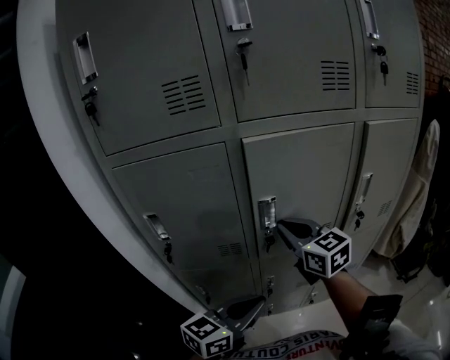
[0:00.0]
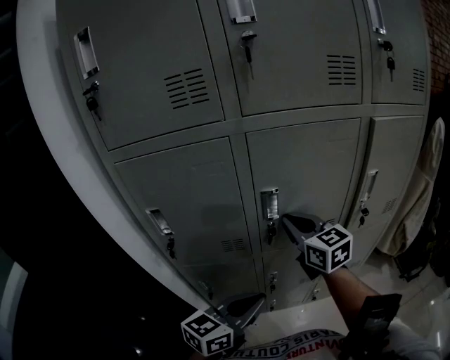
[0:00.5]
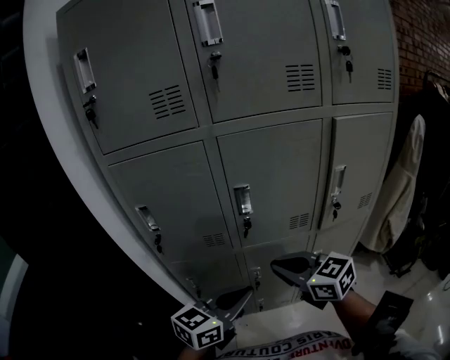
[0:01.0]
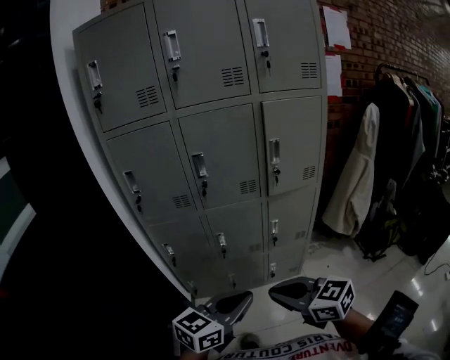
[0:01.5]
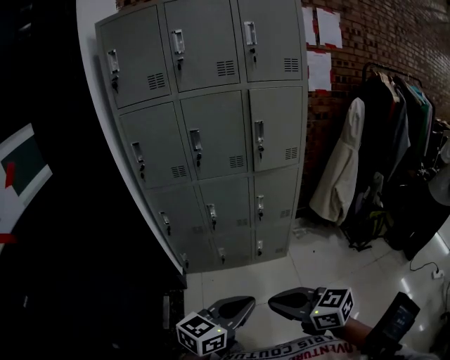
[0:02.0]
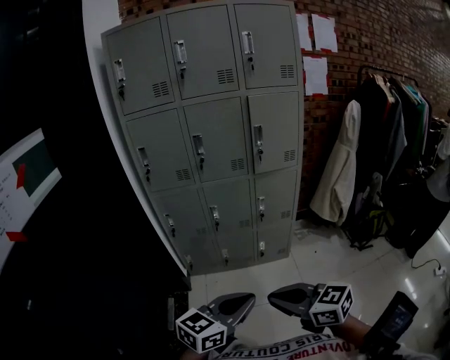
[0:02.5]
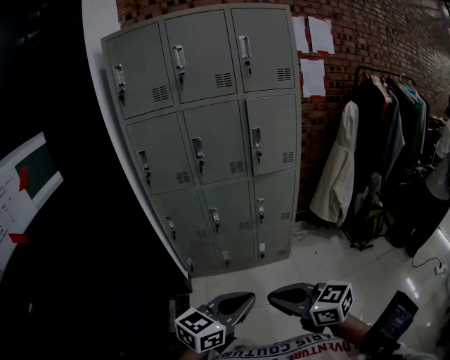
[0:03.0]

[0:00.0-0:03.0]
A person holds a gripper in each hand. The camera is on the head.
0:00.0 to 0:01.5: The right gripper goes approximately 40 cm backward, and swivels approximately 20 degrees. The left gripper goes about 30 cm backward and to the right.
0:01.5 to 0:03.0: The two grippers go roughly 25 cm backward.

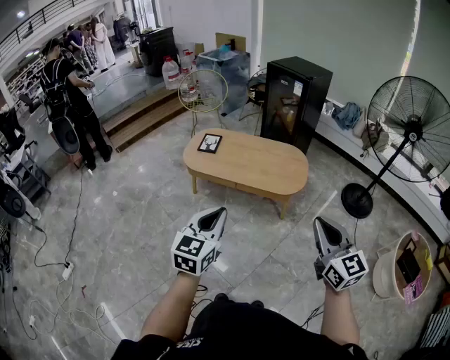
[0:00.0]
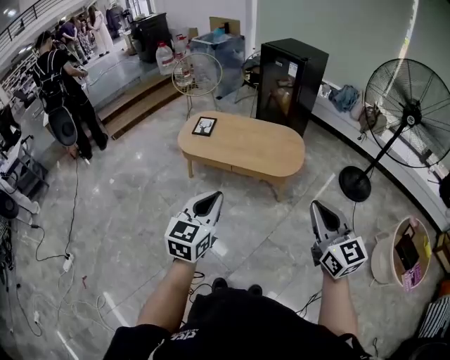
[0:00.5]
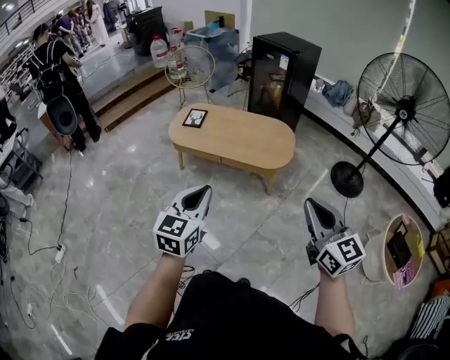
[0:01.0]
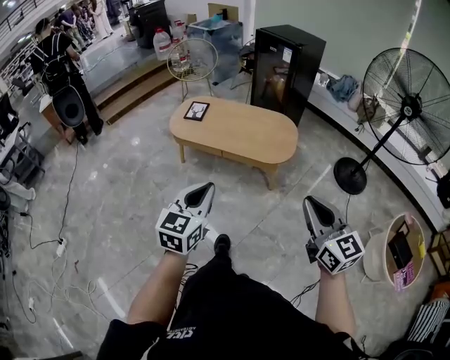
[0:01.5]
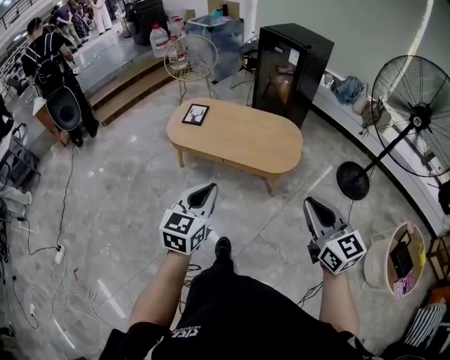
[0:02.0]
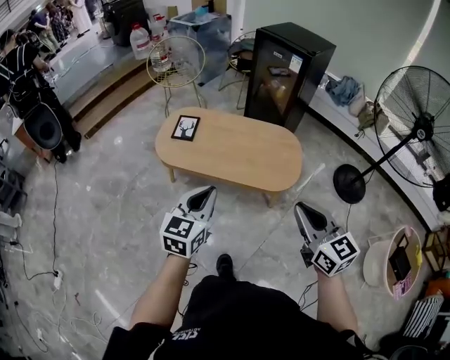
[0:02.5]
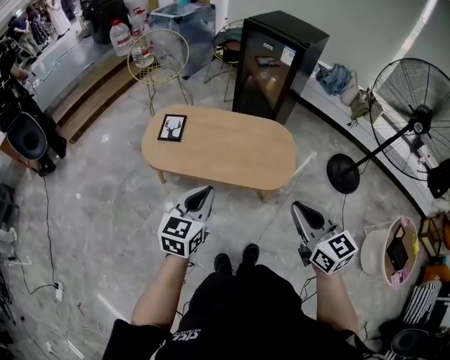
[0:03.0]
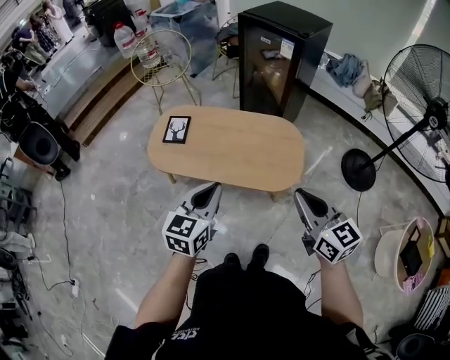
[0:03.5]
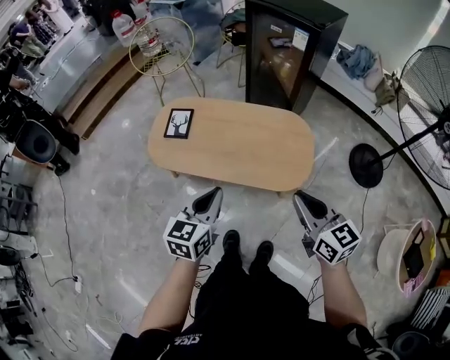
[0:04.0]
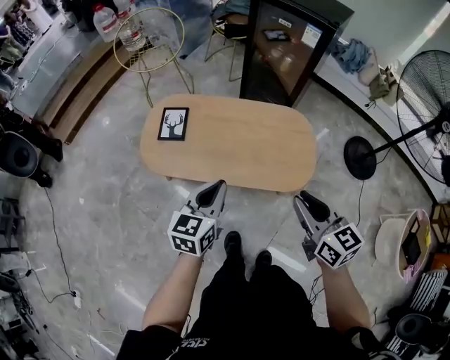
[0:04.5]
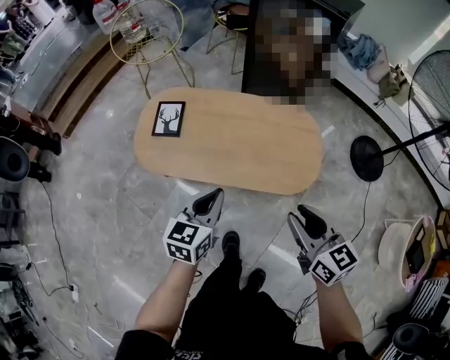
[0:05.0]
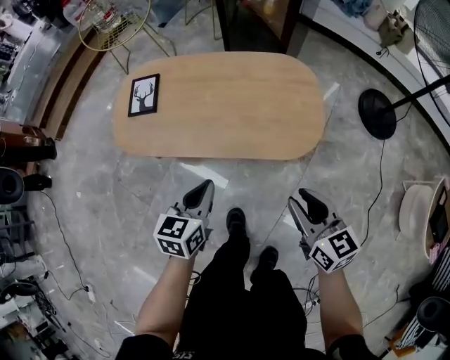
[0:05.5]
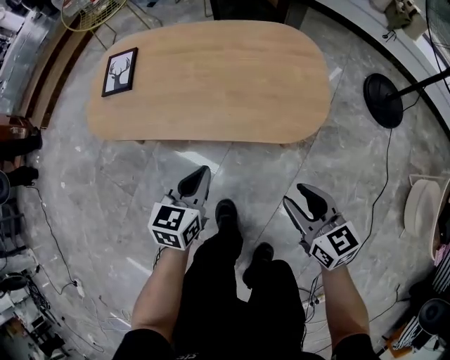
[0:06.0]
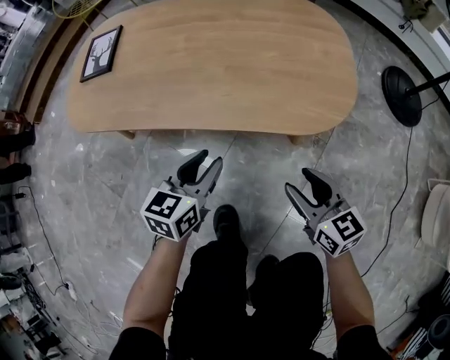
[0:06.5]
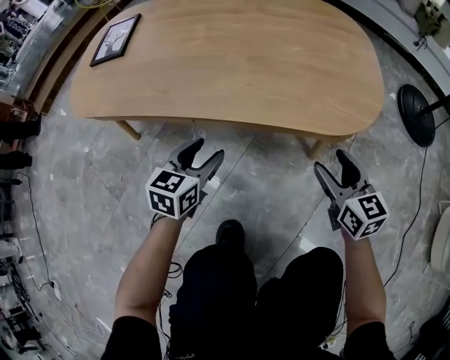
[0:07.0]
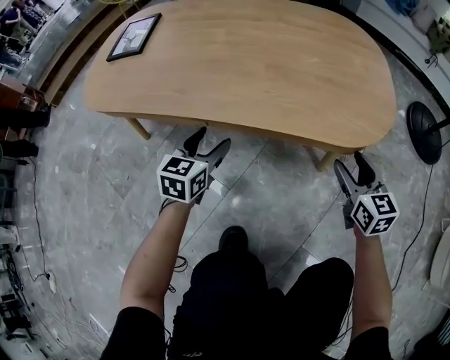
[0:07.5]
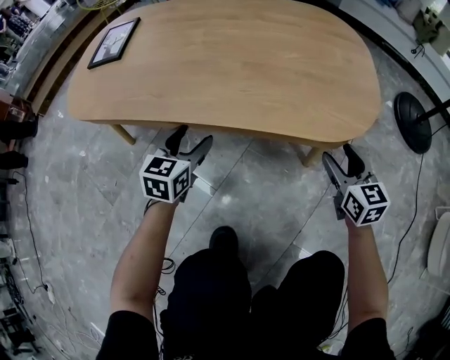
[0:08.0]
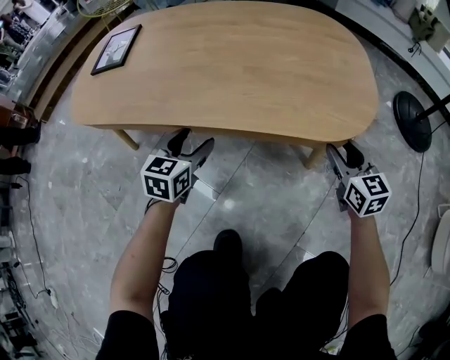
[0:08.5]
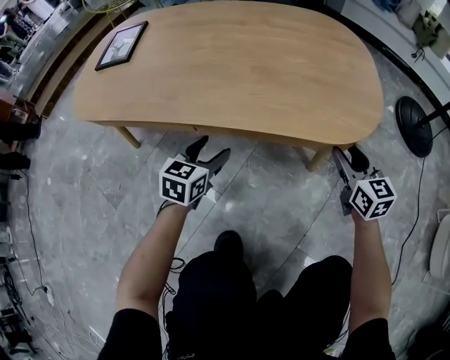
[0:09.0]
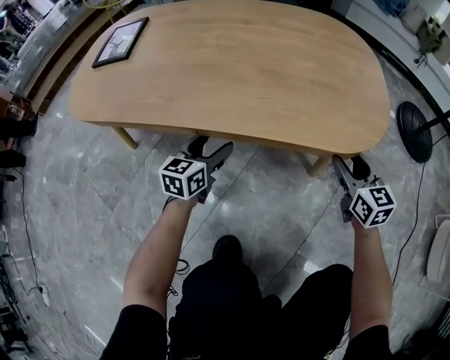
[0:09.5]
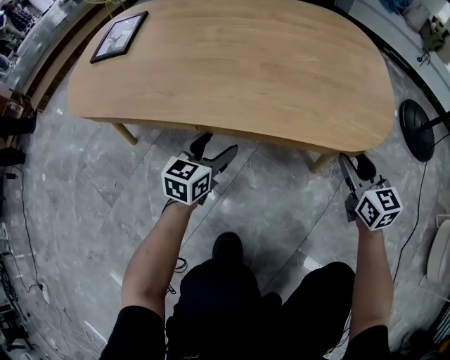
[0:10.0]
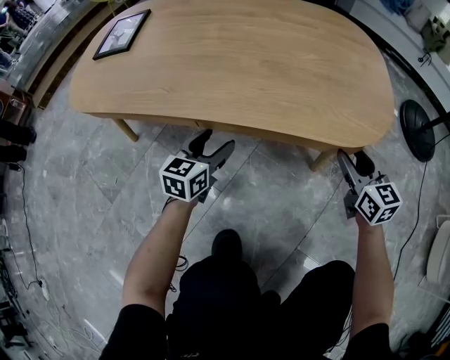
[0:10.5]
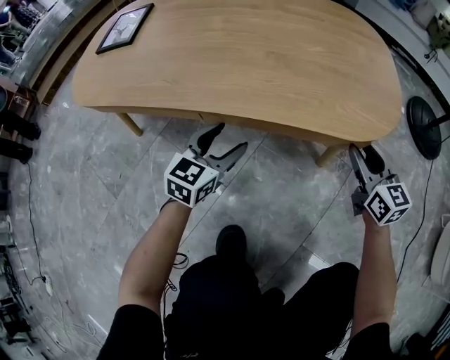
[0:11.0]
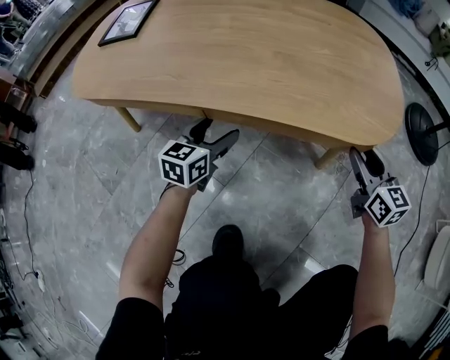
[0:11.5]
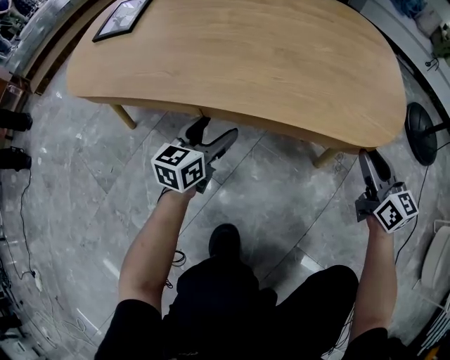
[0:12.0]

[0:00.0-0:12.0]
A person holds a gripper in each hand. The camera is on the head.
0:00.0 to 0:02.0: The left gripper shifts about 10 cm forward and downward; the right gripper travels forward by some 10 cm.
0:02.0 to 0:04.0: The two grippers go roughly 30 cm forward.
0:04.0 to 0:06.0: The grippers both shift downward by about 35 cm. The right gripper opens.
0:06.0 to 0:08.0: Both grippers move downward and forward, some 30 cm. The right gripper opens its fingers. The left gripper opens.
0:08.0 to 0:10.0: The left gripper travels downward by some 5 cm.
0:10.0 to 0:12.0: The grippers stay close to where they were, moving slightly.

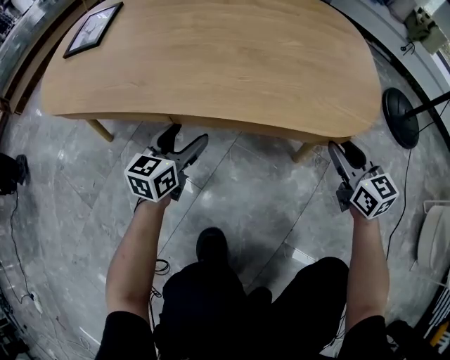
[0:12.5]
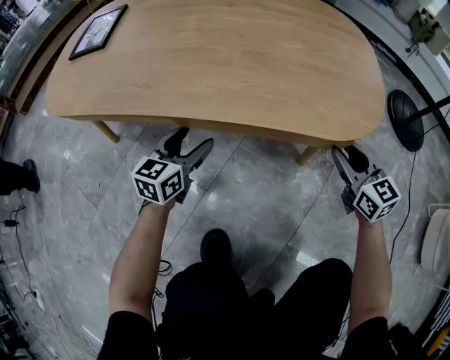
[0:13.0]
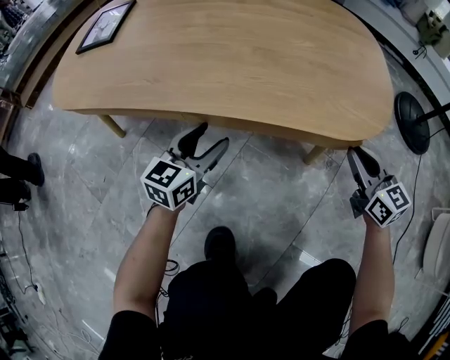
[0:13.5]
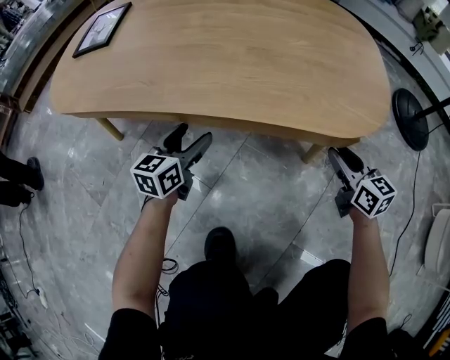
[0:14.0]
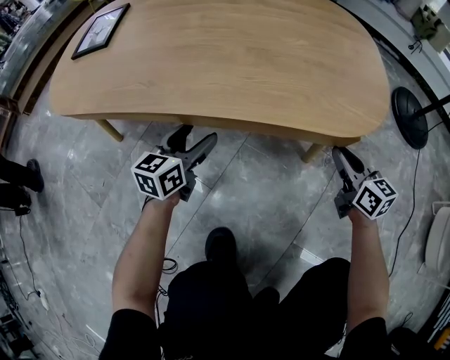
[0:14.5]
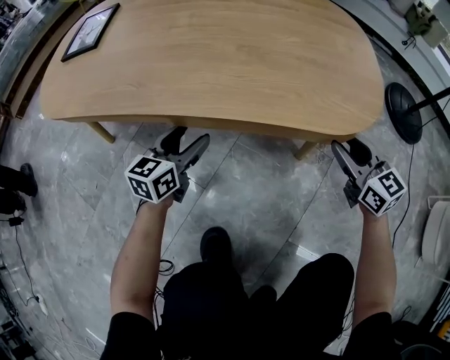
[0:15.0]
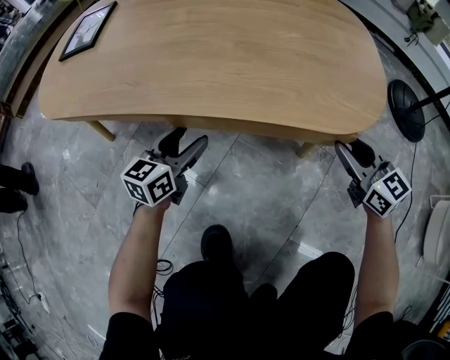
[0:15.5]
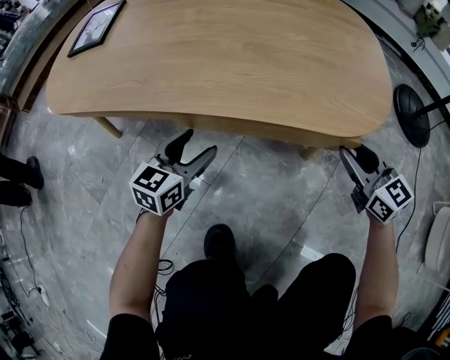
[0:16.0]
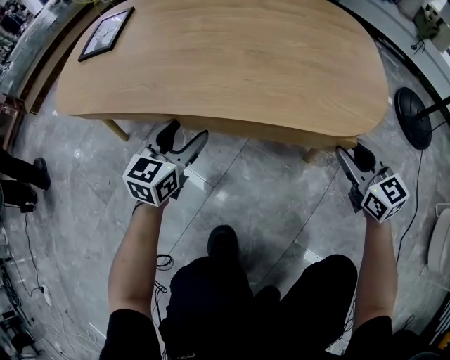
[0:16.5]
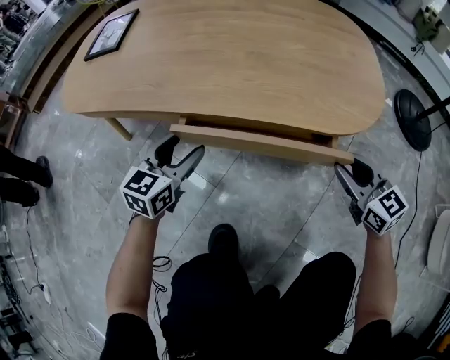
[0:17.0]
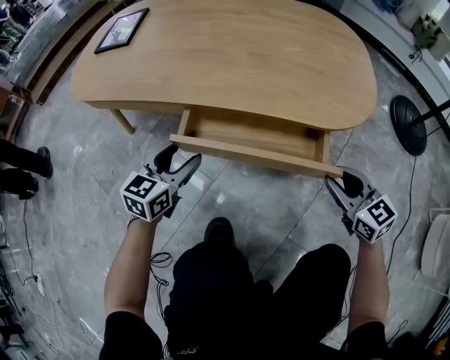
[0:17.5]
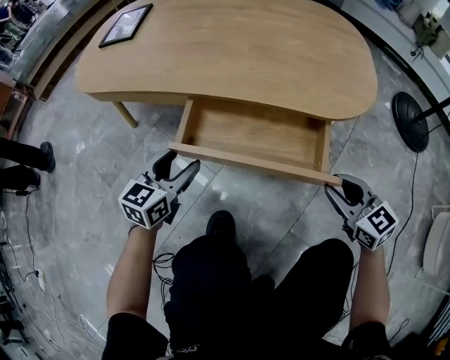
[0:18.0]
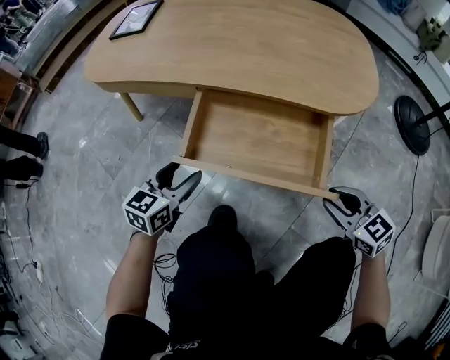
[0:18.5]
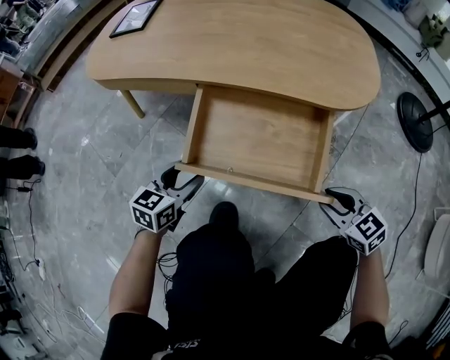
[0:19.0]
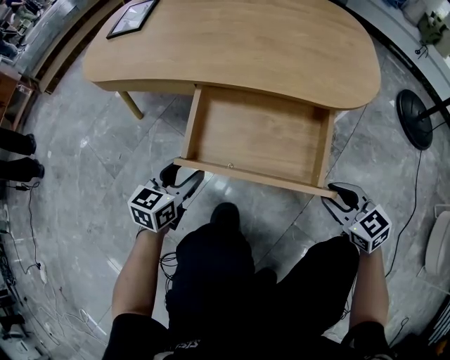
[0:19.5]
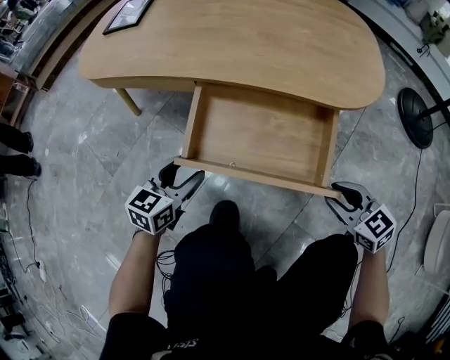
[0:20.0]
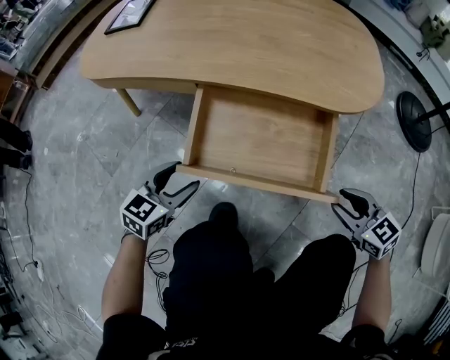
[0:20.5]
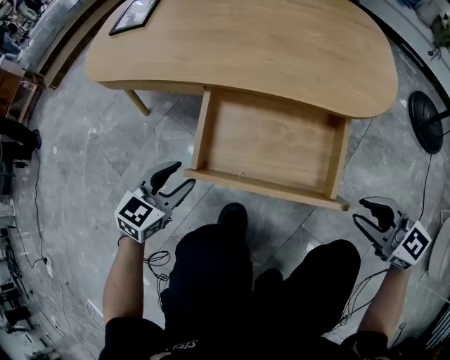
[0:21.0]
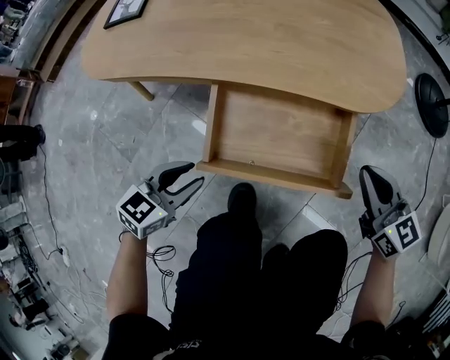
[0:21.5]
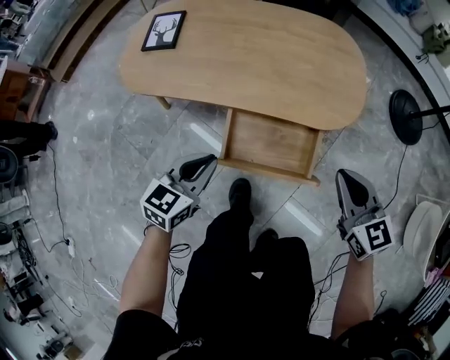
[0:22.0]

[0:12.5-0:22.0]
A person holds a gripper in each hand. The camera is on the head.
0:12.5 to 0:14.5: The grippers make only small movements.
0:14.5 to 0:16.5: The grippers both shift upward by some 5 cm. The right gripper changes its angle by some 20 degrees.
0:16.5 to 0:18.0: Both grippers travel together backward, approximately 15 cm.
0:18.0 to 0:20.0: The right gripper ends up about 5 cm from where it was. Meanwhile the left gripper shifts about 5 cm backward.
0:20.0 to 0:22.0: The two grippers go some 30 cm upward. The right gripper turns by approximately 20 degrees, and closes its fingers. The left gripper closes its fingers.

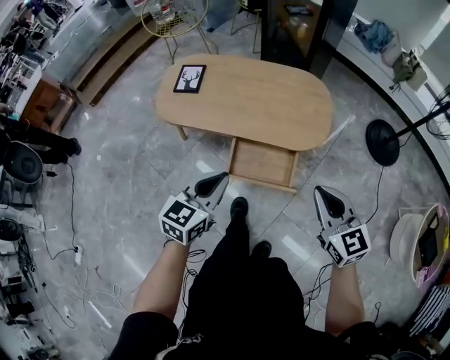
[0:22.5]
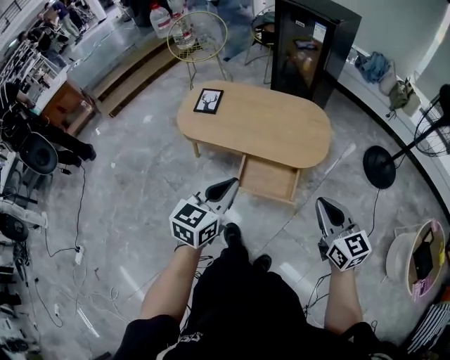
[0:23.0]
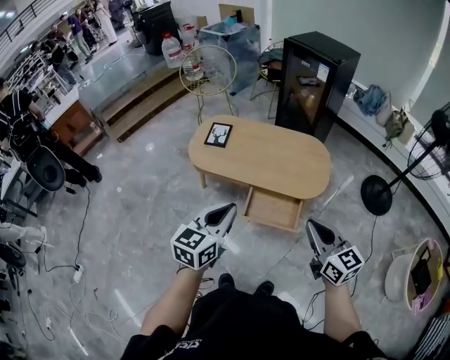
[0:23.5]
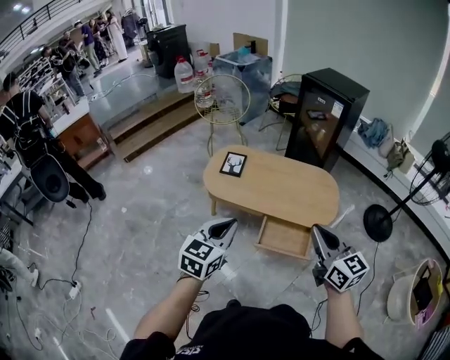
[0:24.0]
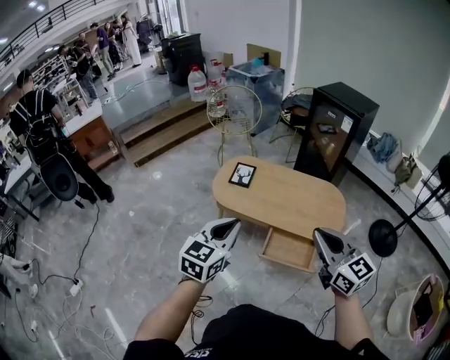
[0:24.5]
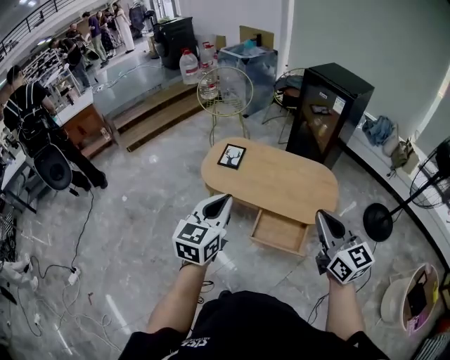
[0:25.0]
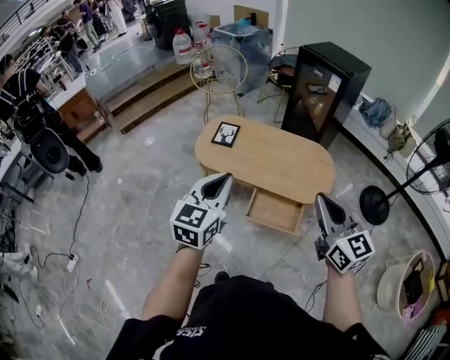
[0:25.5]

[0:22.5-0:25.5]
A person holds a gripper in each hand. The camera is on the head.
0:22.5 to 0:24.0: The two grippers go roughly 25 cm upward and to the left.
0:24.0 to 0:25.5: The right gripper is displaced to the right by roughly 5 cm. Meanwhile the left gripper is displaced upward and to the right by some 10 cm.
